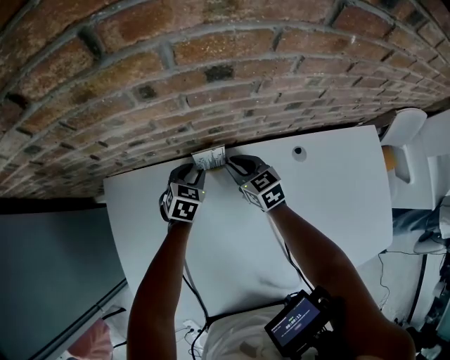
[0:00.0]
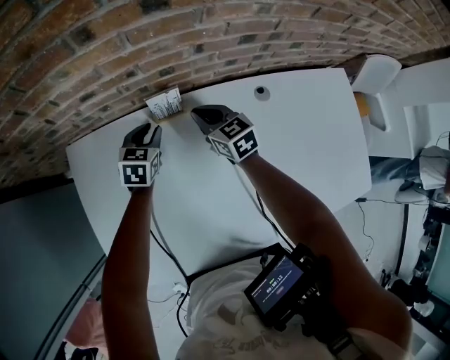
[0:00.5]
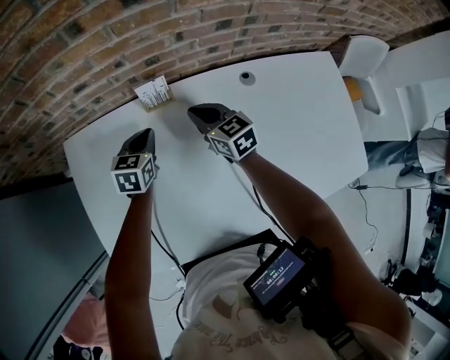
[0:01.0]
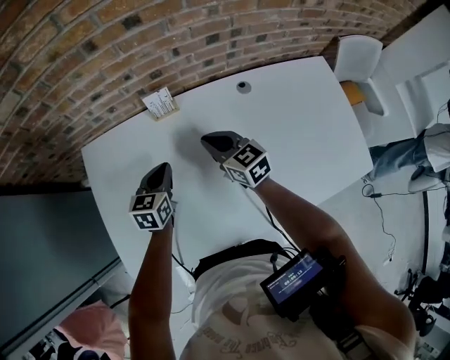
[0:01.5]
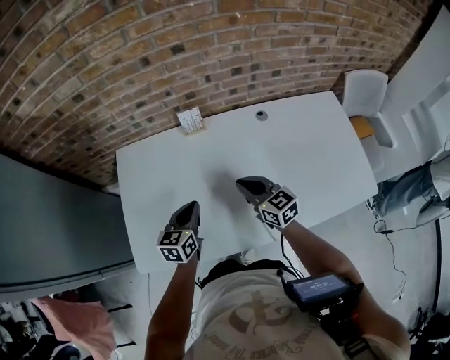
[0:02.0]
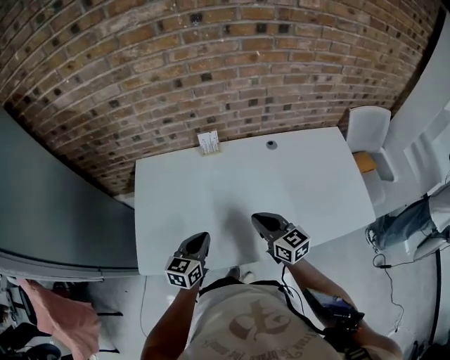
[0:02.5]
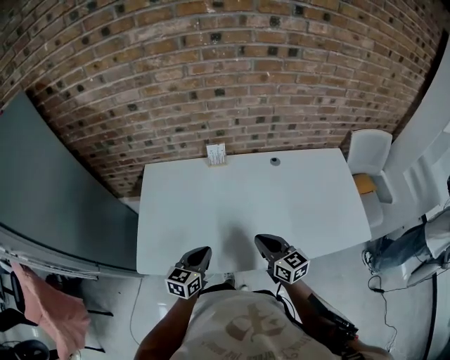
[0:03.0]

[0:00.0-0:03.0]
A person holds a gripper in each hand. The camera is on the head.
0:00.0 to 0:01.5: The two grippers go roughly 20 cm backward and upward. The left gripper changes its angle by about 20 degrees, and closes up.
0:01.5 to 0:03.0: The grippers both shift backward by approximately 25 cm.

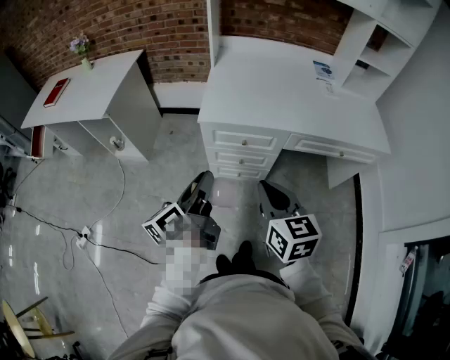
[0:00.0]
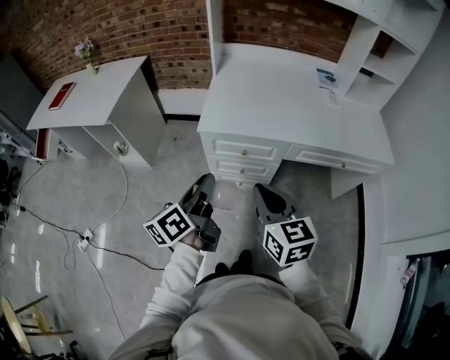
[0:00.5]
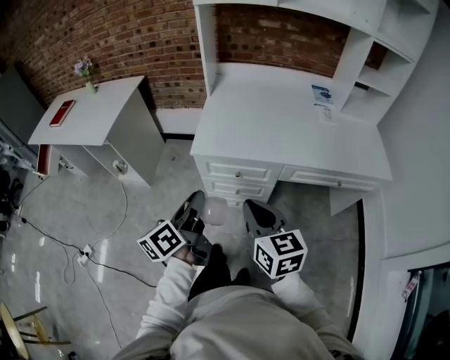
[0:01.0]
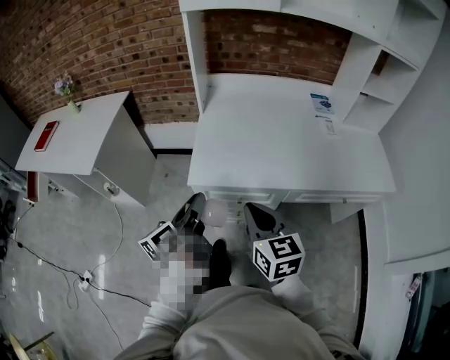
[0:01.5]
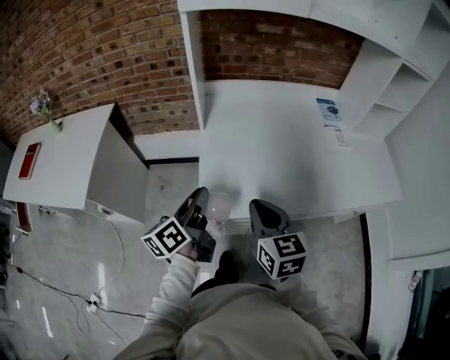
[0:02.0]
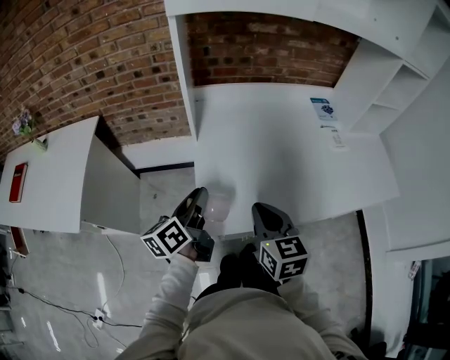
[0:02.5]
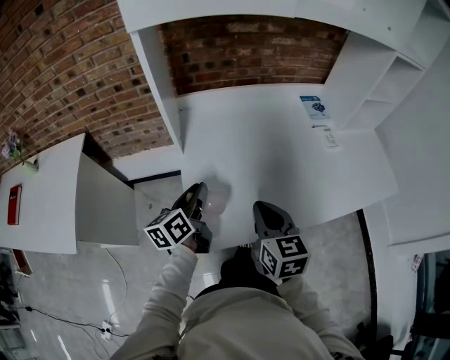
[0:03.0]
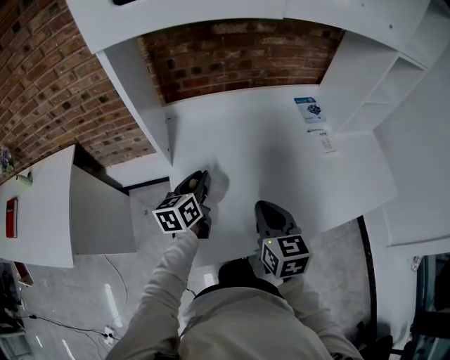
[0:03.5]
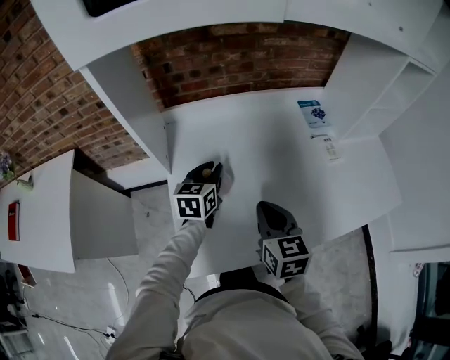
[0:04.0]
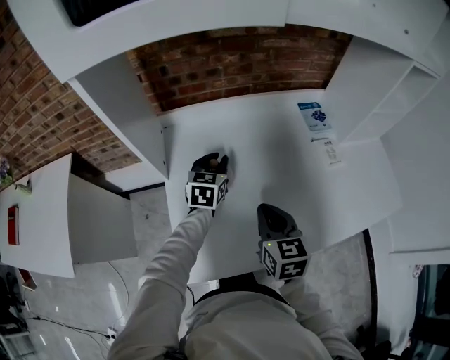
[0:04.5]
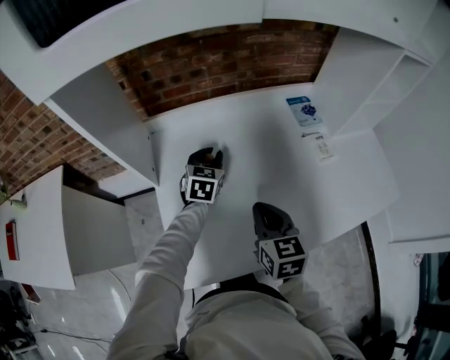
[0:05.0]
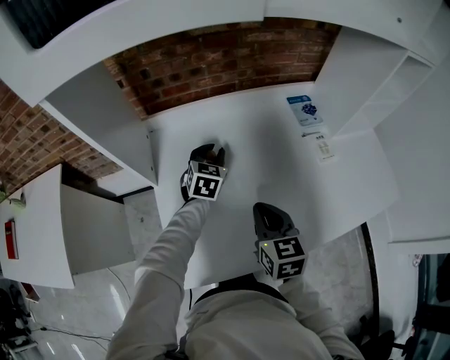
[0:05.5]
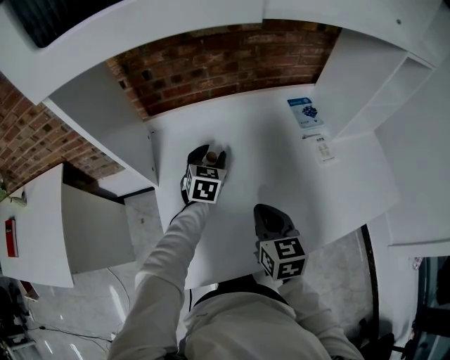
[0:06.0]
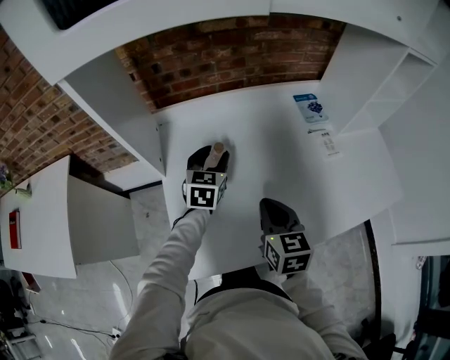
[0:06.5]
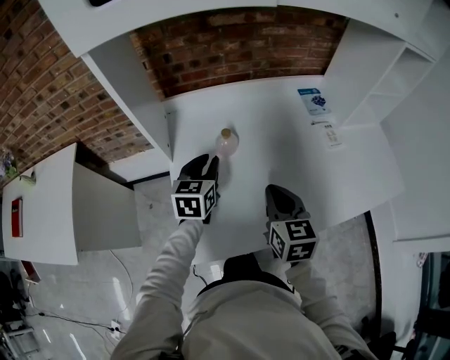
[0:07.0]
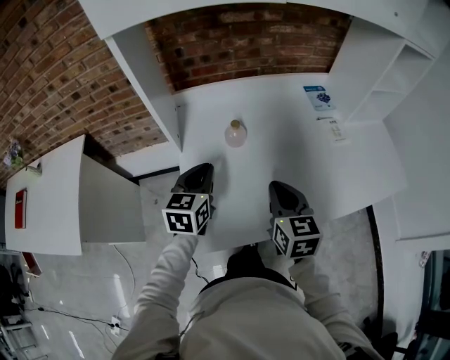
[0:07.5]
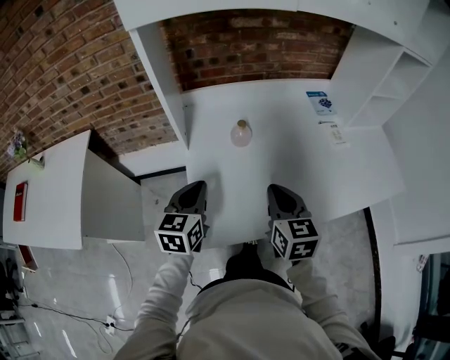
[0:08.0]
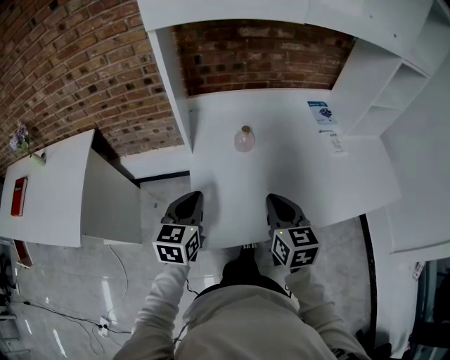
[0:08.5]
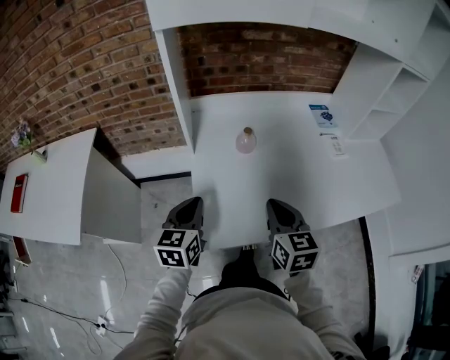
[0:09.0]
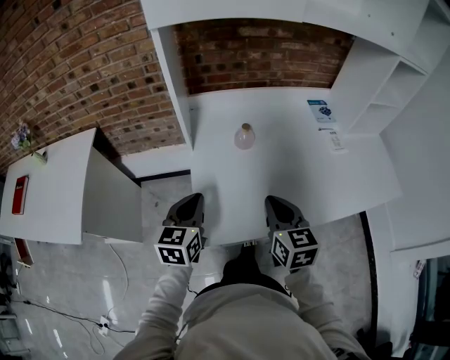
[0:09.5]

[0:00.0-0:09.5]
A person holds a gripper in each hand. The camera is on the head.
0:00.0 to 0:02.0: The two grippers go roughly 35 cm forward.
0:02.0 to 0:04.0: The left gripper is displaced forward by about 30 cm, and rotates roughly 50 degrees. Meanwhile the right gripper is displaced forward and to the right by about 20 cm.
0:04.0 to 0:05.5: The left gripper shifts about 10 cm forward and to the right, and swivels some 20 degrees.
0:05.5 to 0:07.5: The right gripper travels backward by approximately 5 cm; the left gripper heads backward, to the left and upward, covering some 25 cm, and opens and closes again.
0:07.5 to 0:09.5: The left gripper goes approximately 10 cm backward and to the left, while the right gripper heads backward, covering about 5 cm.

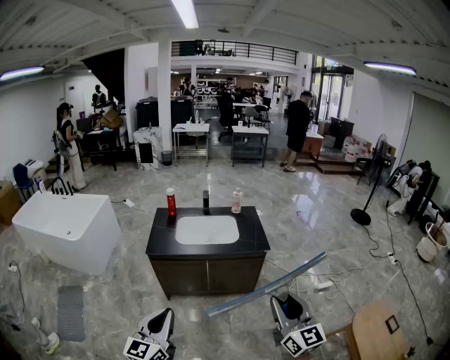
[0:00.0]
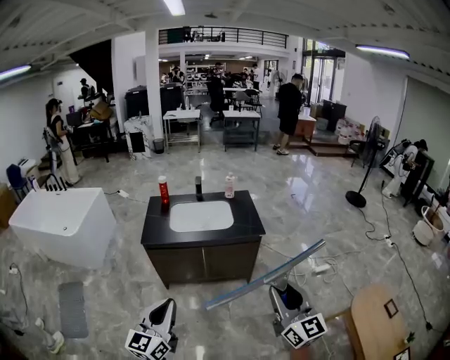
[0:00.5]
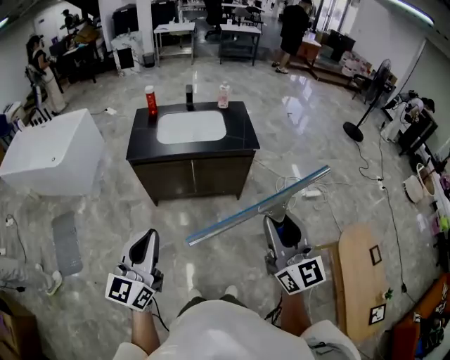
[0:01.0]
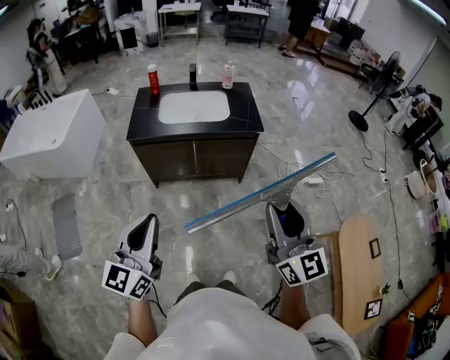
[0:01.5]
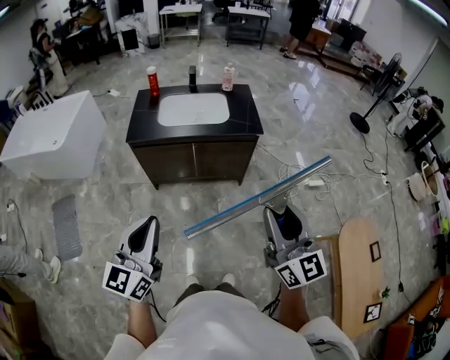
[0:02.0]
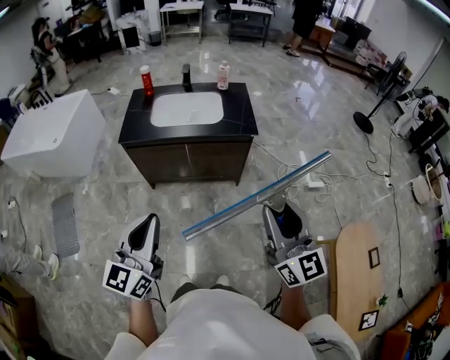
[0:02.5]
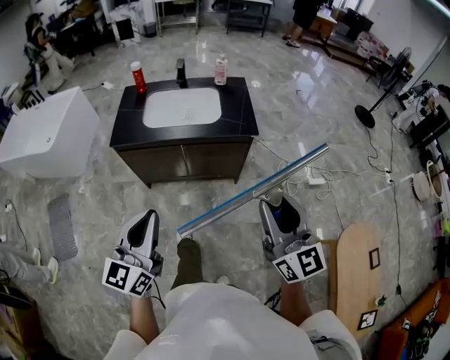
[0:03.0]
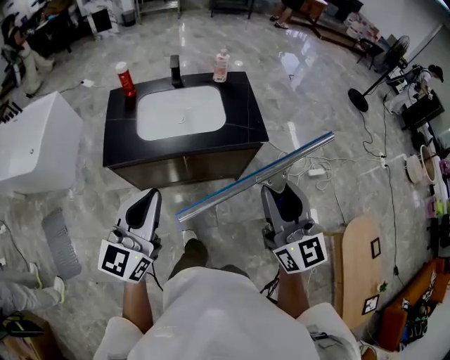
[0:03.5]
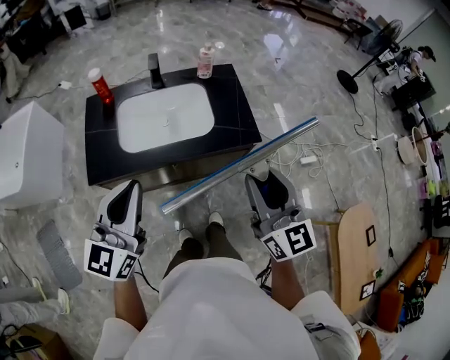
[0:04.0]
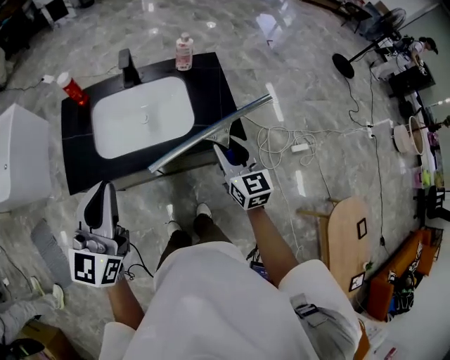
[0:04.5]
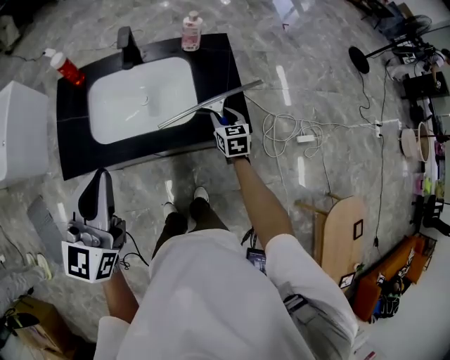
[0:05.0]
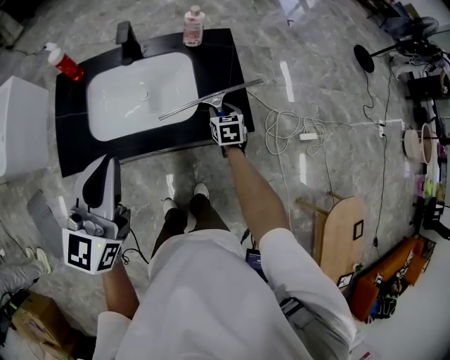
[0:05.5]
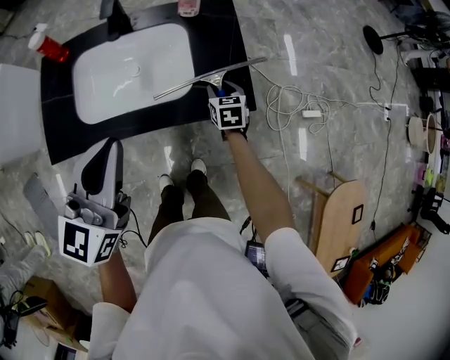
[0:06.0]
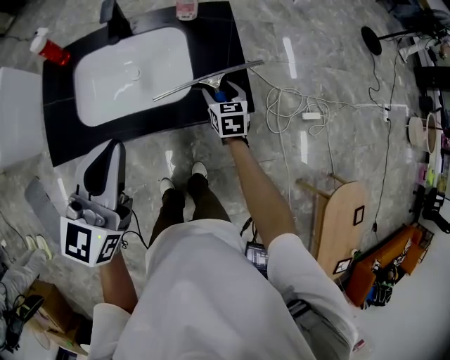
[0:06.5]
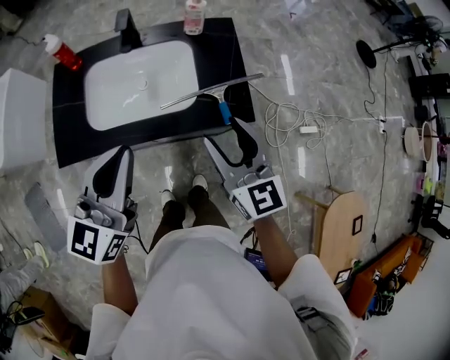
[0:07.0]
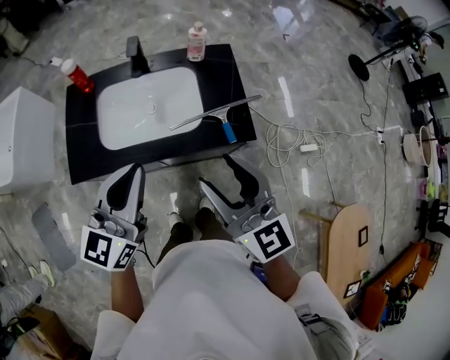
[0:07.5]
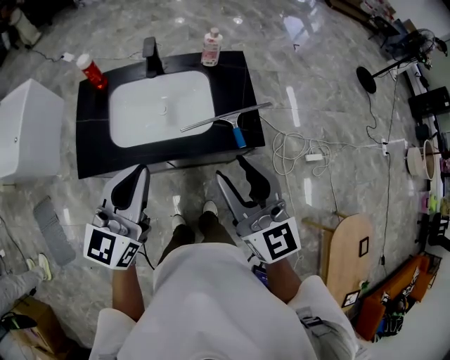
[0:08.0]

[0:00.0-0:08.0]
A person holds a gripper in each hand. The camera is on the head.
0:00.0 to 0:02.0: There are only small adjustments of the grippers.
0:02.0 to 0:04.0: The two grippers go approximately 40 cm forward.
0:04.0 to 0:06.0: The left gripper heads forward, to the right and downward, covering approximately 20 cm. The right gripper moves downward and forward, some 50 cm, and points its fingers some 50 degrees further downward.
0:06.0 to 0:08.0: The left gripper heads backward, covering some 5 cm; the right gripper travels upward and backward by about 40 cm, and points its fingers about 40 degrees further upward.

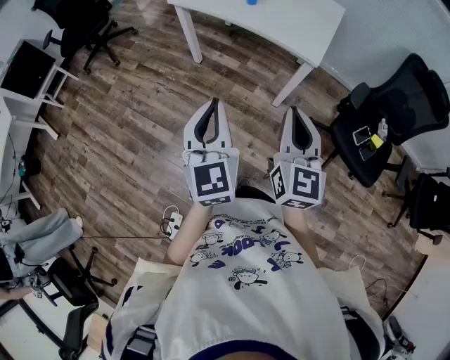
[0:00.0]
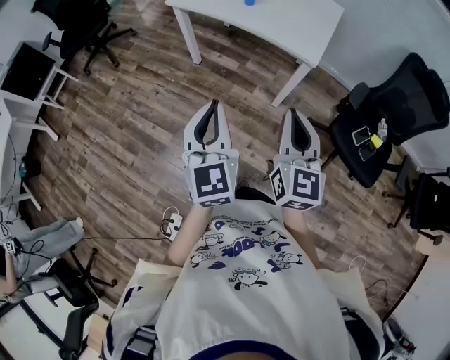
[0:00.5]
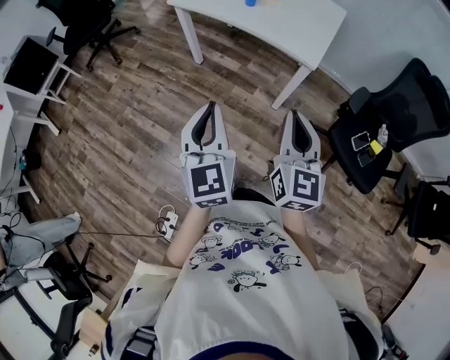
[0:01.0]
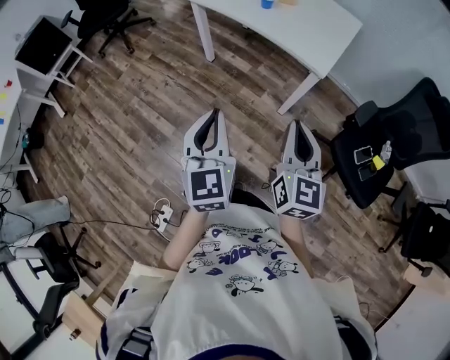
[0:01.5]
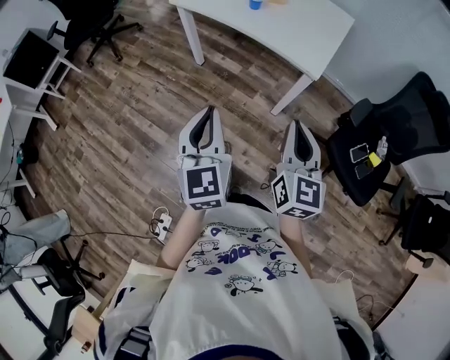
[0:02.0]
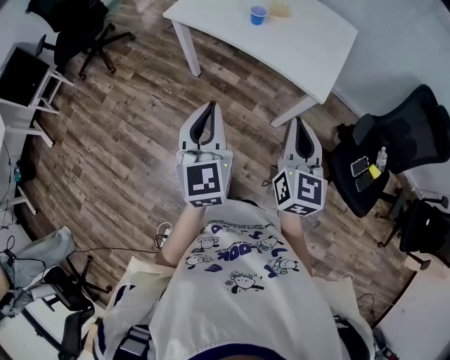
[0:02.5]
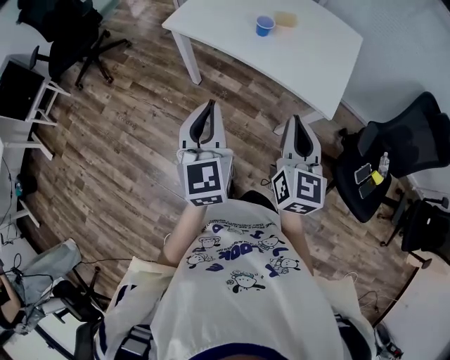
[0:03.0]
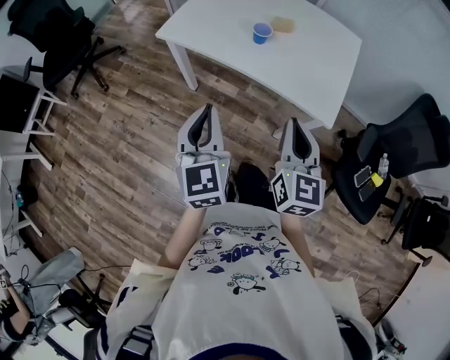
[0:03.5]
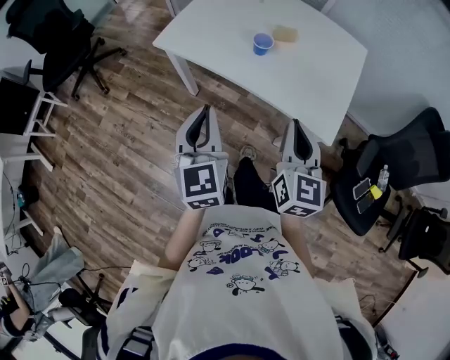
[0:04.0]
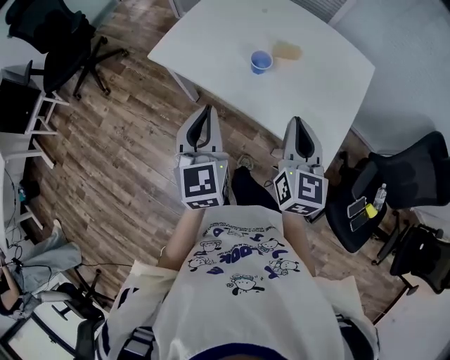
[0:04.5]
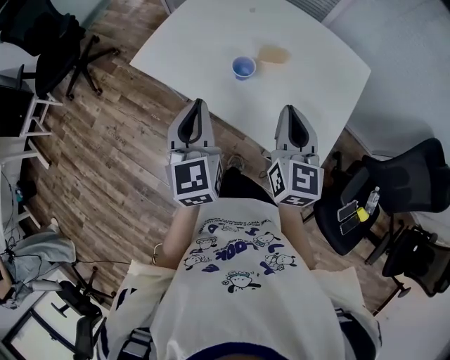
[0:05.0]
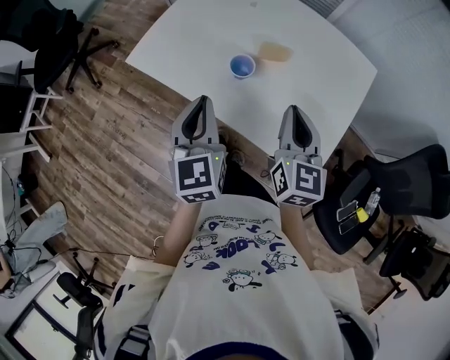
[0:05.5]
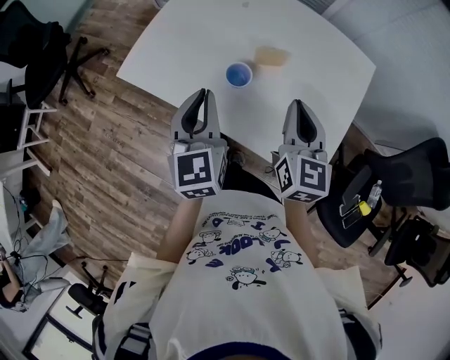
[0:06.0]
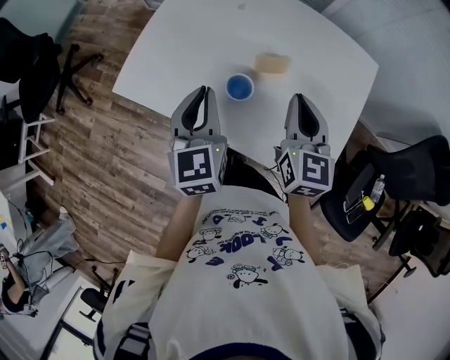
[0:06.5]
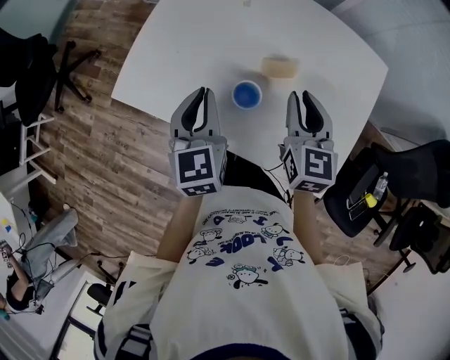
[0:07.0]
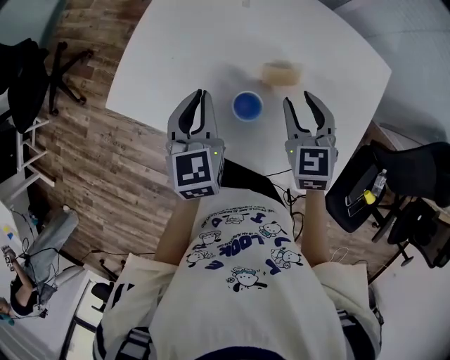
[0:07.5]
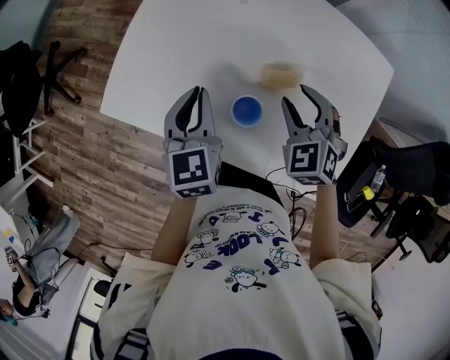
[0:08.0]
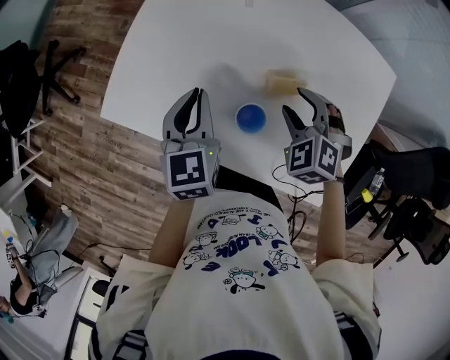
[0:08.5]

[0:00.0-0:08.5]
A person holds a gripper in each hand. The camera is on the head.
0:00.0 to 0:02.0: The right gripper moves approximately 5 cm.
0:02.0 to 0:04.0: The grippers both shift forward by roughly 25 cm.
0:04.0 to 0:06.5: Both grippers travel together forward, approximately 25 cm.
0:06.5 to 0:08.5: The right gripper shifts roughly 15 cm downward and forward, points its fingers roughly 40 degrees further downward, and opens its fingers. Meanwhile the left gripper heads forward and downward, covering some 10 cm.
